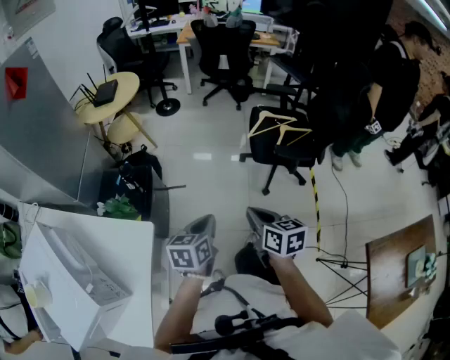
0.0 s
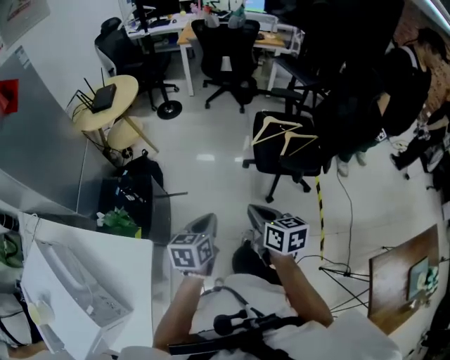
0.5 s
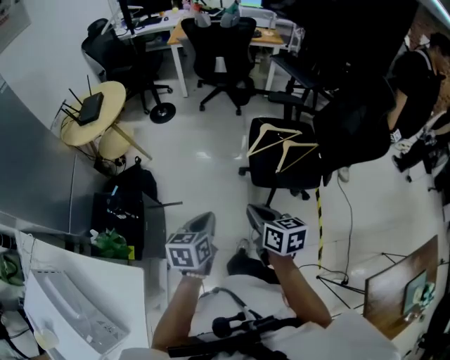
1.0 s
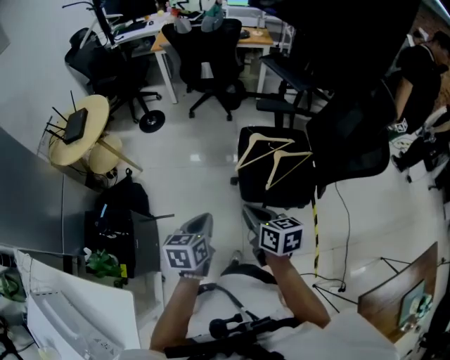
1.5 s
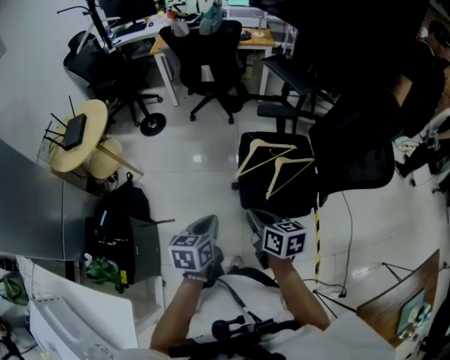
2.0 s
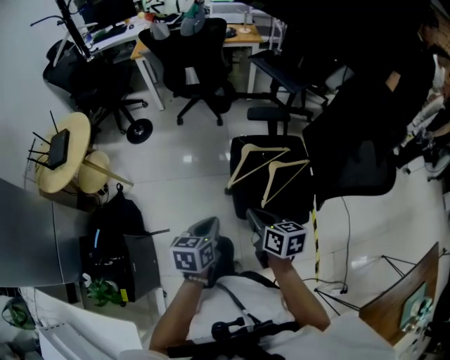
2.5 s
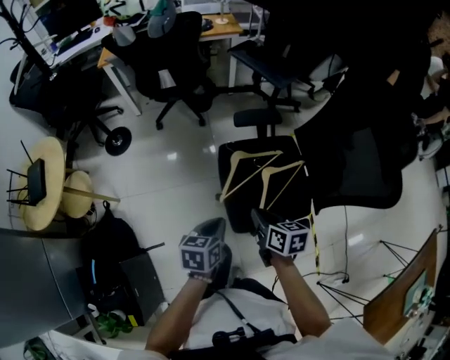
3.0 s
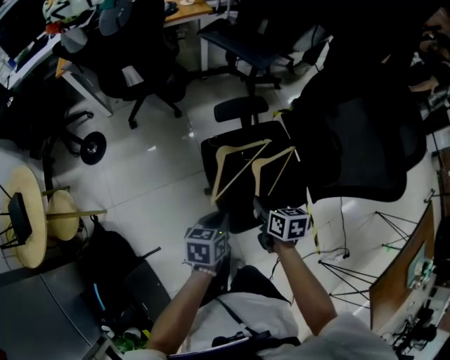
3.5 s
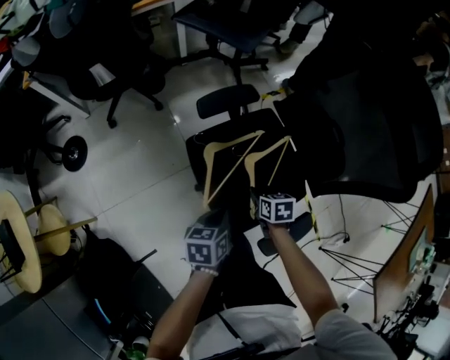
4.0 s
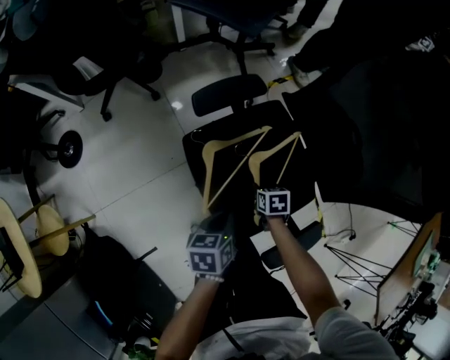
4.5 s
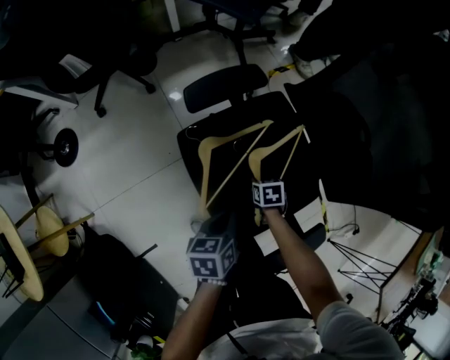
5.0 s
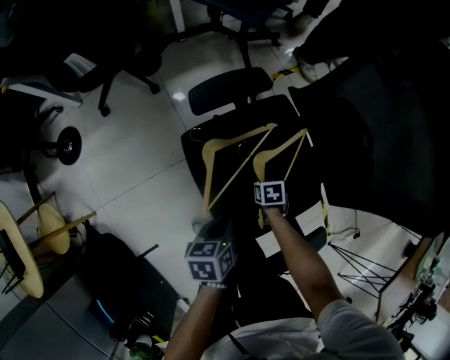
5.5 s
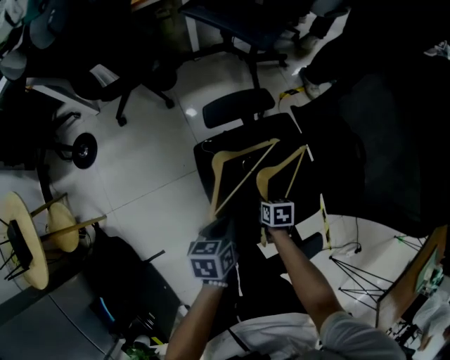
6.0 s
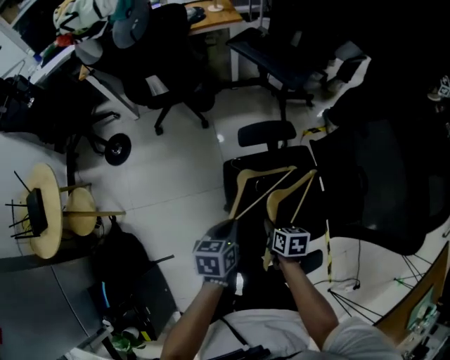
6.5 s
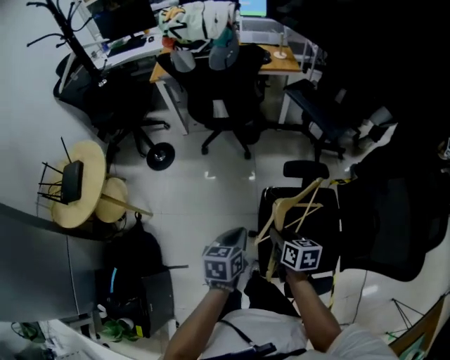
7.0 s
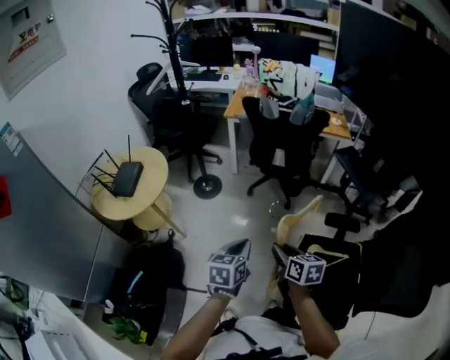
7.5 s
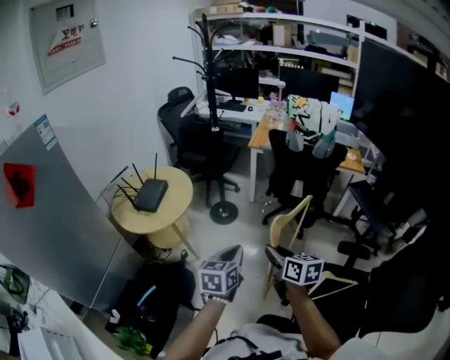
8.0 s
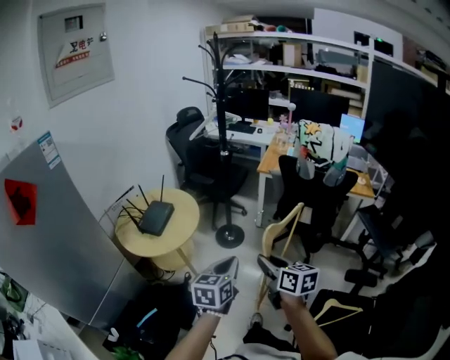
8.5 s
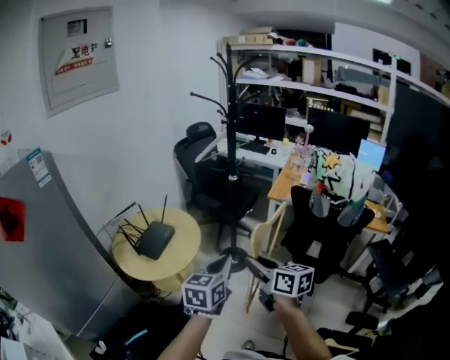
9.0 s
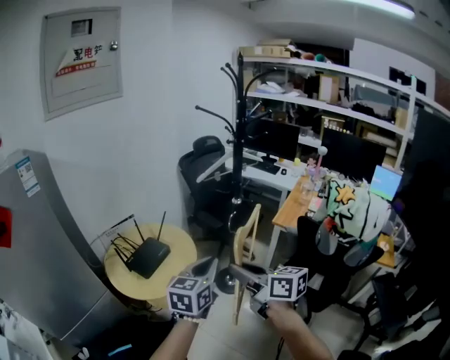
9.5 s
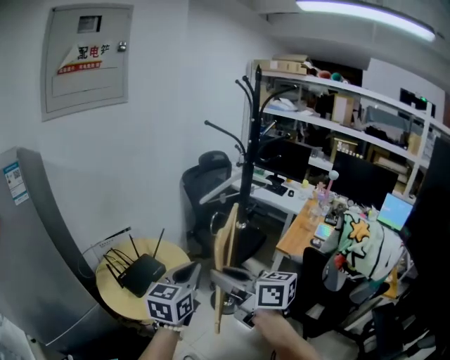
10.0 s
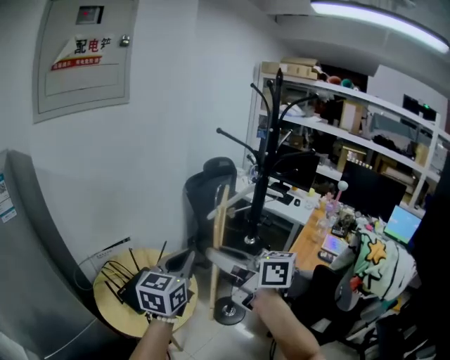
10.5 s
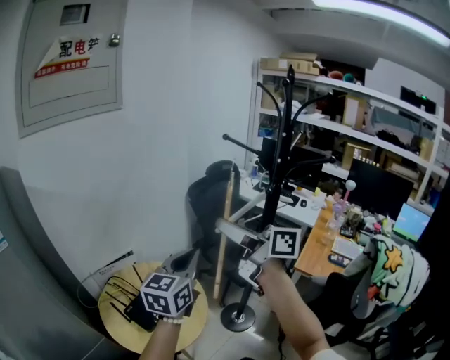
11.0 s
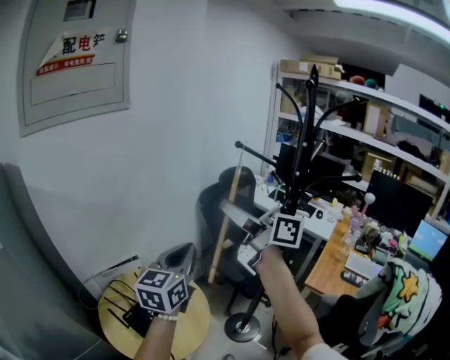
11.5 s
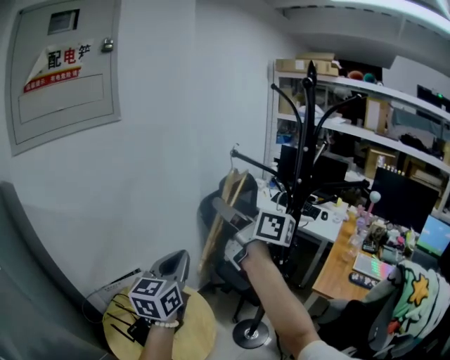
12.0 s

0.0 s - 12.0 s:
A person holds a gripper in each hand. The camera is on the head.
0.0 s - 2.0 s: The two grippers go about 40 cm forward and to the right.
2.0 s - 4.0 s: The left gripper moves roughly 40 cm, and swivels about 30 degrees. Meanwhile the right gripper shifts by approximately 40 cm, points its fingers some 30 degrees further downward, and opens its fingers.
4.0 s - 6.0 s: The right gripper shifts some 10 cm downward.
6.0 s - 8.0 s: Both grippers are carried some 50 cm. The right gripper tips its fingers upward by about 50 degrees, while the left gripper swivels some 50 degrees.
8.0 s - 10.0 s: The pair of grippers is taken some 40 cm. The left gripper turns by roughly 30 degrees. The right gripper changes its angle by roughly 50 degrees.
10.0 s - 12.0 s: The two grippers go roughly 40 cm forward.

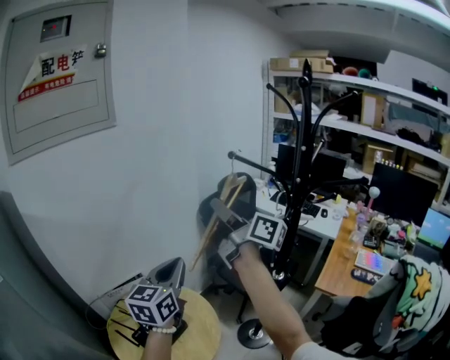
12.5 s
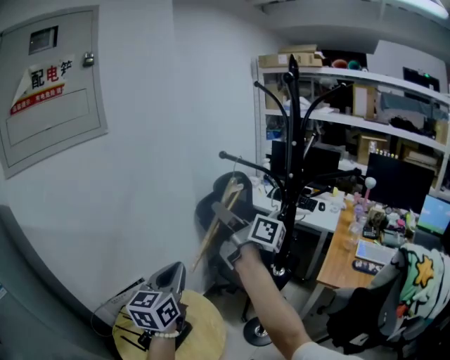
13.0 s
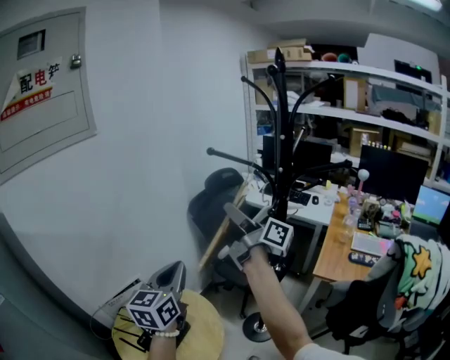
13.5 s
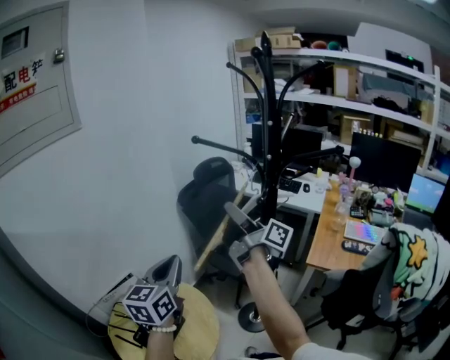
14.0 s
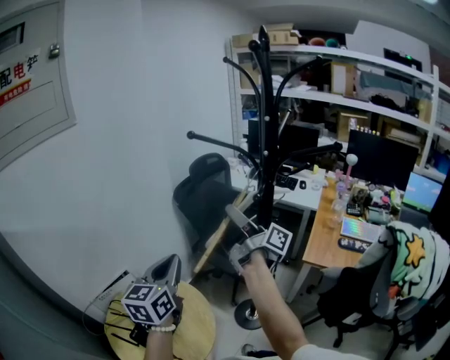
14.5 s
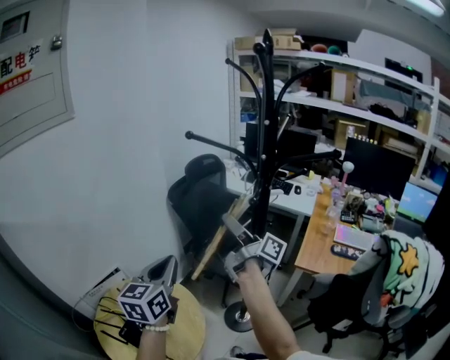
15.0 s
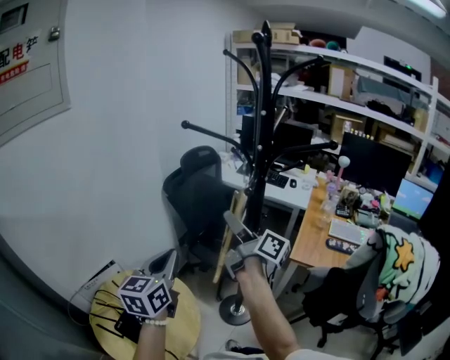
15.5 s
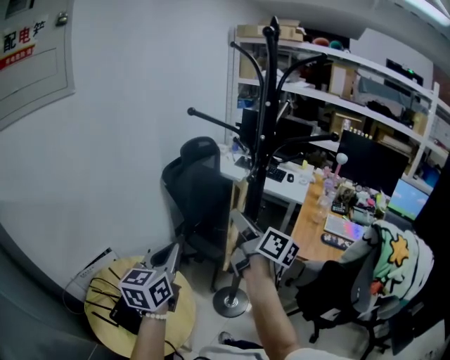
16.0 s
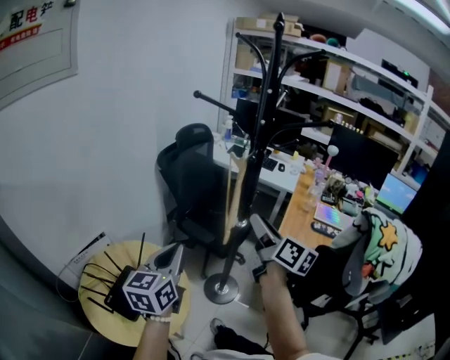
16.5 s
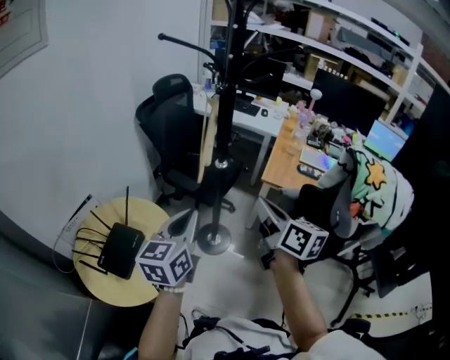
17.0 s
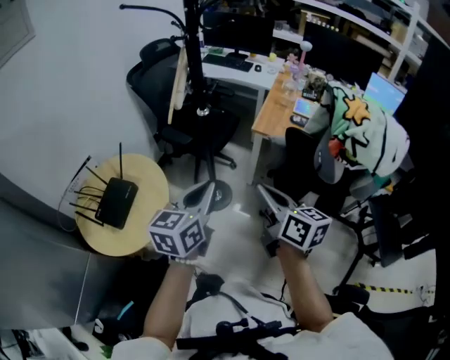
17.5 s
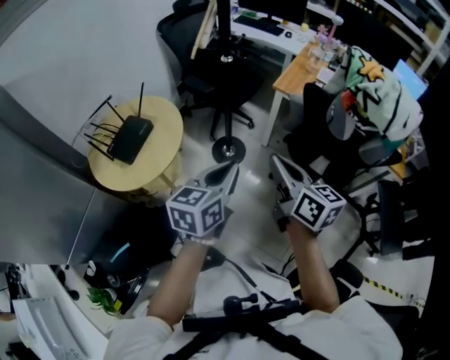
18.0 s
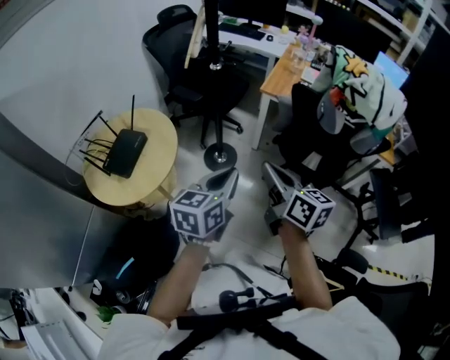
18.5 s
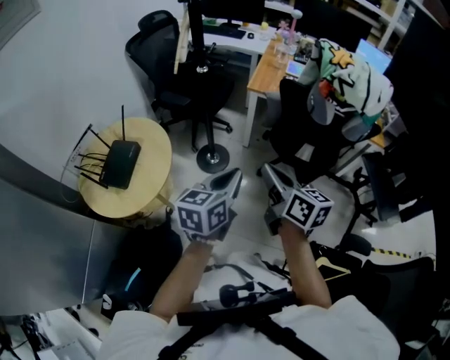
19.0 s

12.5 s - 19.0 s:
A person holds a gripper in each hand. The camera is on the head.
12.5 s - 14.5 s: The left gripper changes place by some 5 cm, while the right gripper shifts approximately 15 cm to the right and downward, and swivels some 30 degrees.
14.5 s - 17.0 s: The left gripper goes about 20 cm backward, to the right and downward. Meanwhile the right gripper heads backward and to the right, covering some 30 cm, angles its fingers downward, by approximately 40 degrees, and closes its fingers.
17.0 s - 19.0 s: The left gripper moves backward and to the right, about 30 cm, and rotates about 20 degrees. The right gripper shifts some 25 cm backward.

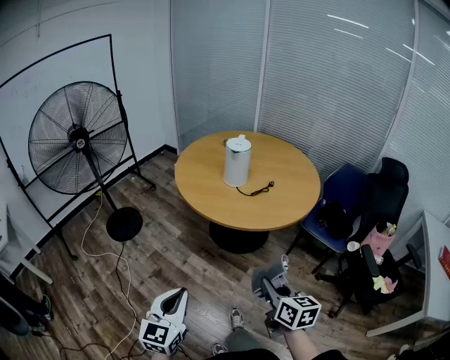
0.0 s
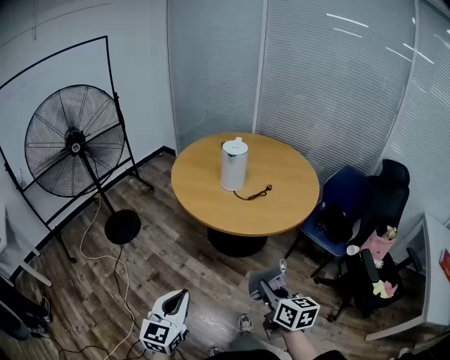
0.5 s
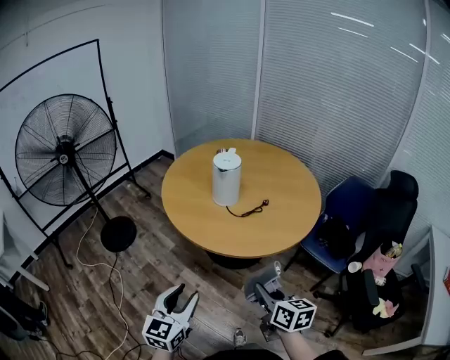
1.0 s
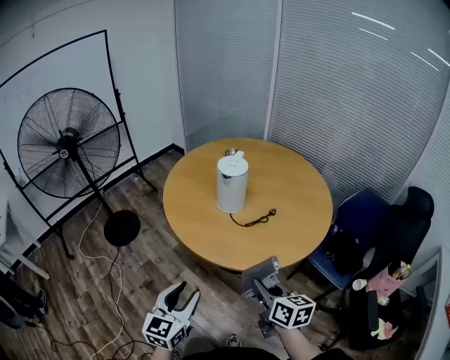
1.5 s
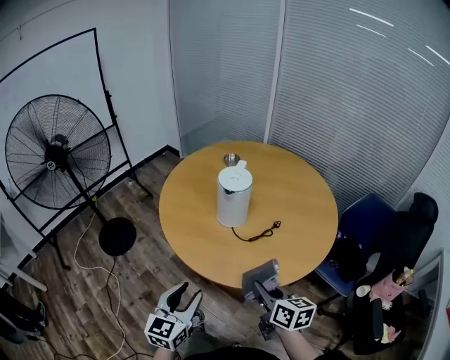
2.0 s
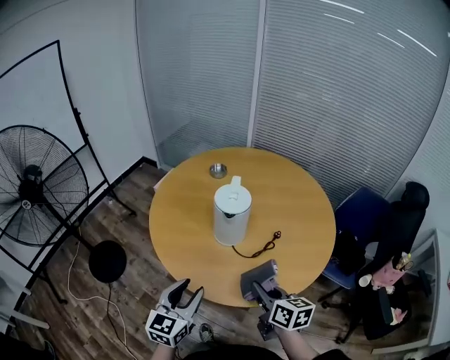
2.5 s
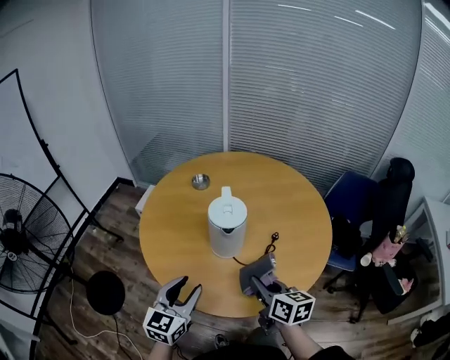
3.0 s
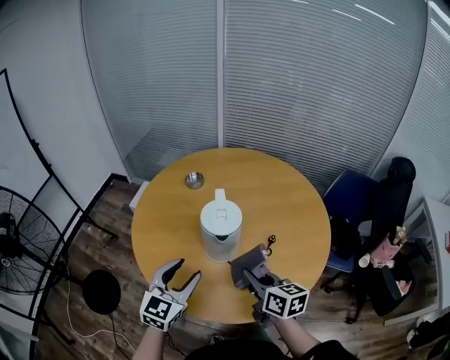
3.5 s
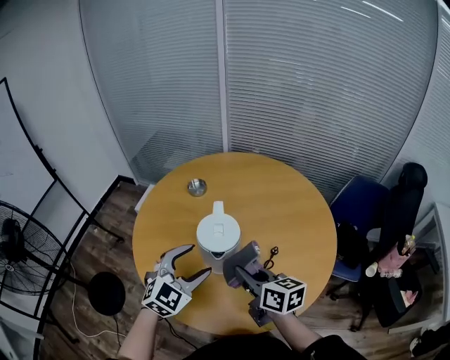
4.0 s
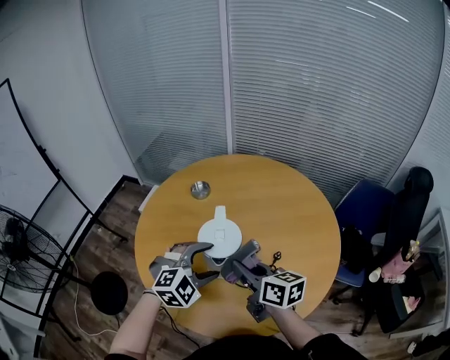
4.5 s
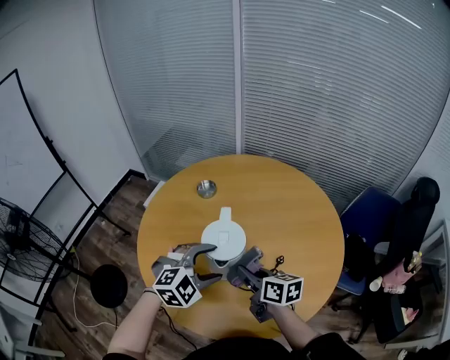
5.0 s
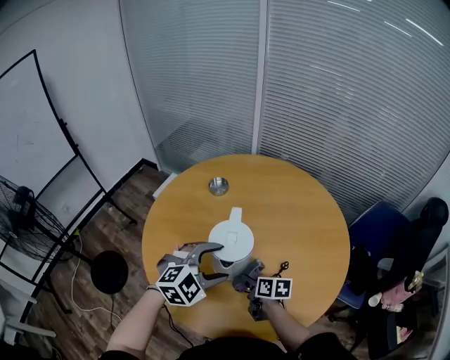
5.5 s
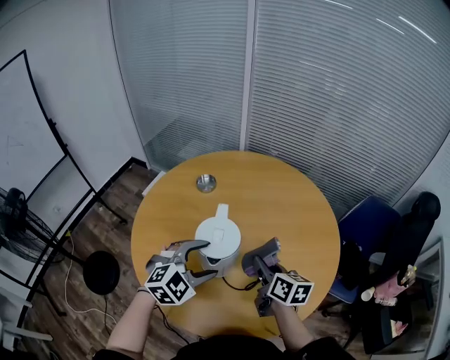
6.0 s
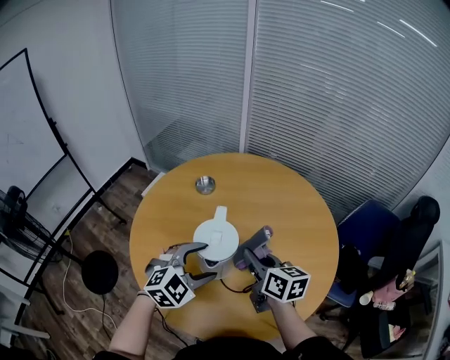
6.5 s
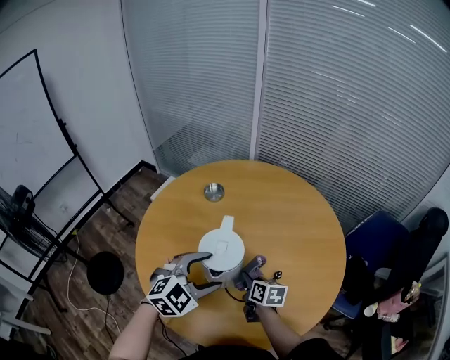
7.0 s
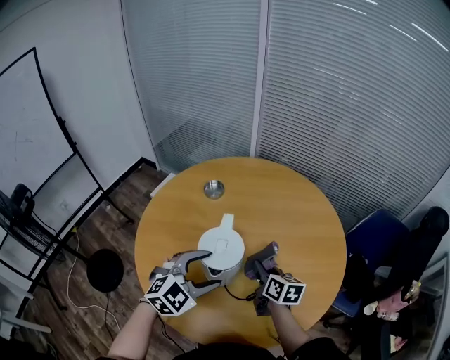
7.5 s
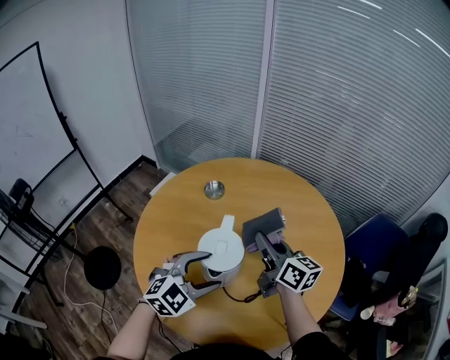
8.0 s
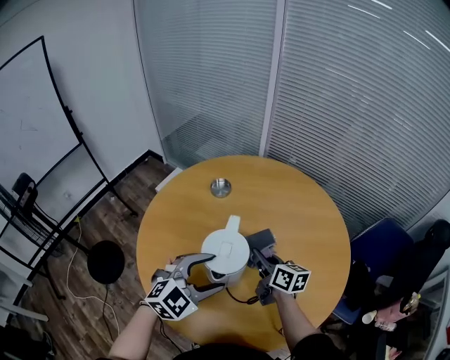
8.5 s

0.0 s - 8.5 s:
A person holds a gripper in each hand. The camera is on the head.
0.0 s - 2.0 s: Both grippers travel together forward, roughly 30 cm. The left gripper opens.
2.0 s - 4.0 s: The two grippers go roughly 30 cm forward. The left gripper changes its angle by some 50 degrees, and opens its fingers.
4.0 s - 6.5 s: The right gripper goes roughly 10 cm forward, and moves about 20 cm downward and comes back. The left gripper shifts by roughly 5 cm.
6.5 s - 8.5 s: The right gripper goes up and down, about 20 cm each way, reversing 2 times.
